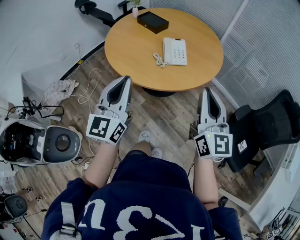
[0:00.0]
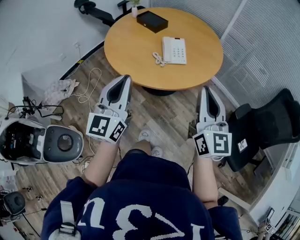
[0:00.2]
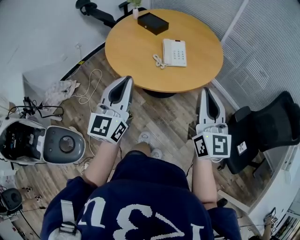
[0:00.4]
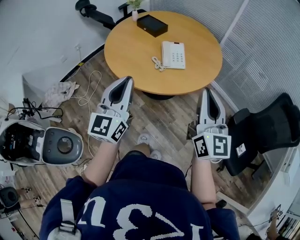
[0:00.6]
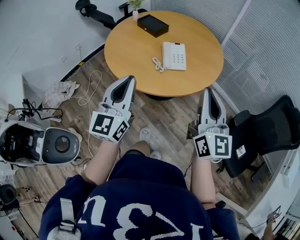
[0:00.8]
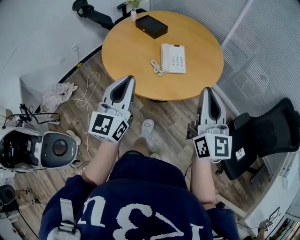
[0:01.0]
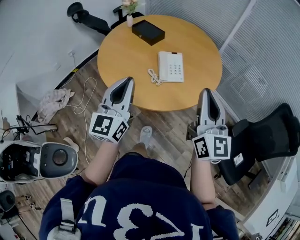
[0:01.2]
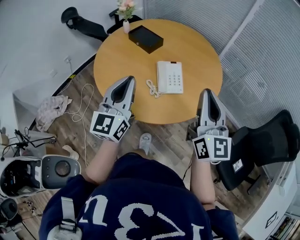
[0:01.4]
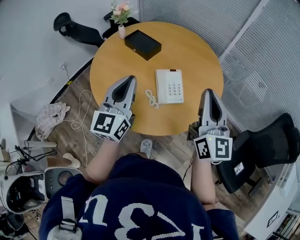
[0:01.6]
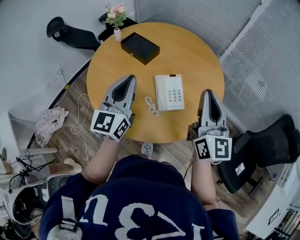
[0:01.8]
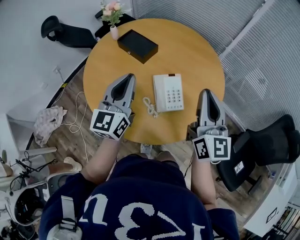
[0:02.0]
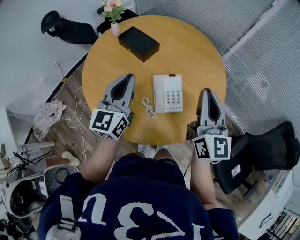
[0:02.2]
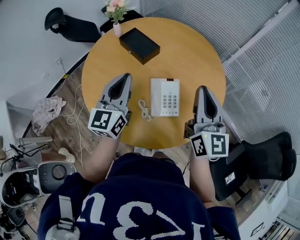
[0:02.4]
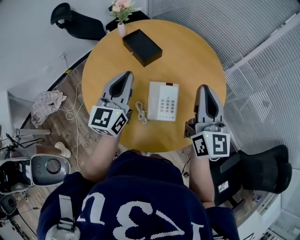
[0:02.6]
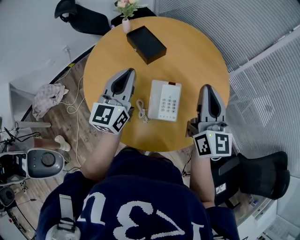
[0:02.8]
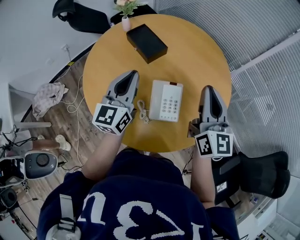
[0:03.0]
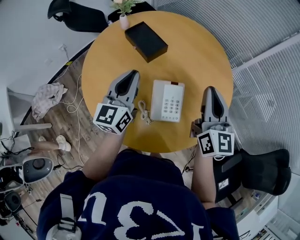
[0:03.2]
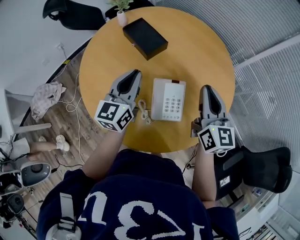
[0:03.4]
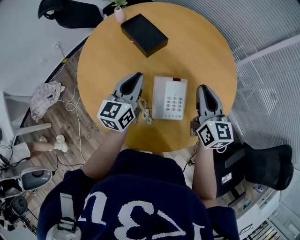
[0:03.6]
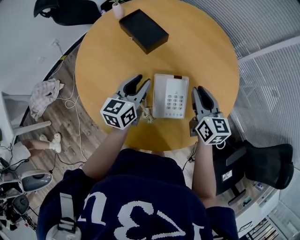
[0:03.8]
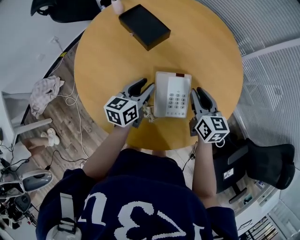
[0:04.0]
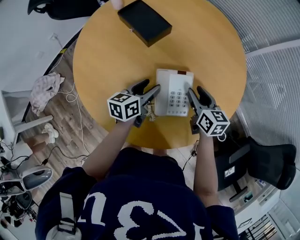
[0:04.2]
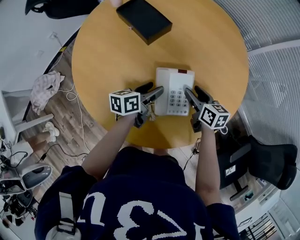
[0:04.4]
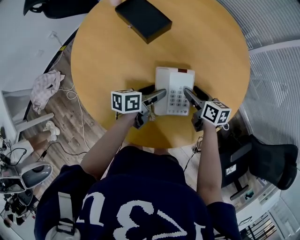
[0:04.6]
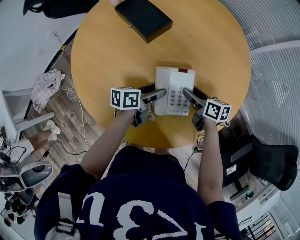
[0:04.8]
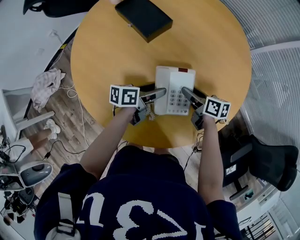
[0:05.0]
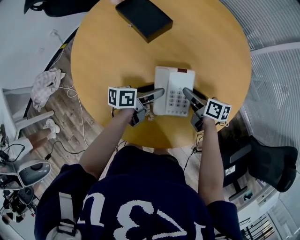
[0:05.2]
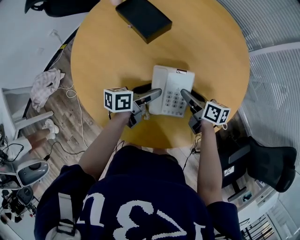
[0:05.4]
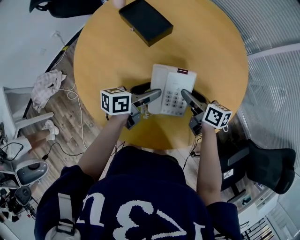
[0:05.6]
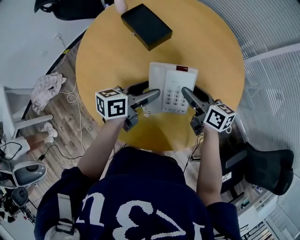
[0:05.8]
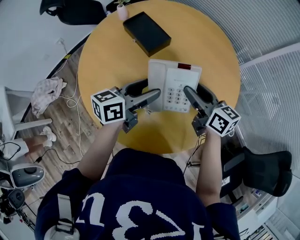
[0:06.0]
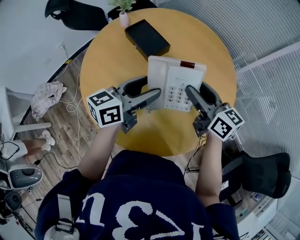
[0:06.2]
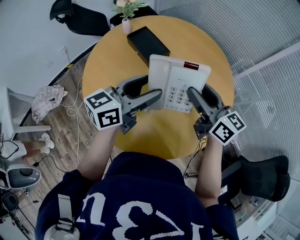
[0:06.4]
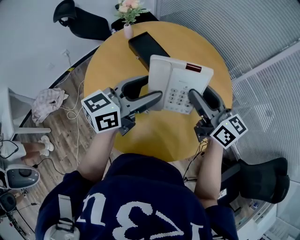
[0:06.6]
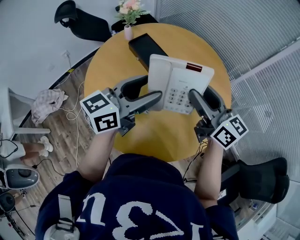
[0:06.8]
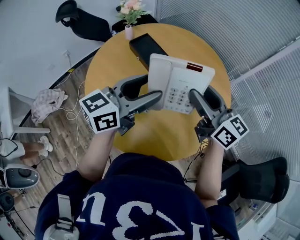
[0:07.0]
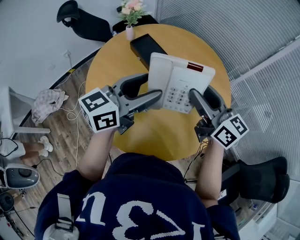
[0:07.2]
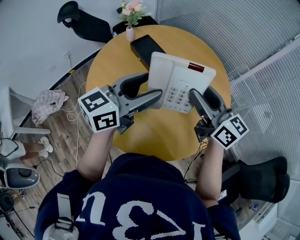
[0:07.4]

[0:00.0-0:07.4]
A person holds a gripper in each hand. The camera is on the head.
0:00.0 to 0:01.4: The two grippers go about 20 cm forward.
0:01.4 to 0:03.0: Both grippers move forward, about 25 cm.
0:03.0 to 0:04.4: Both grippers move downward, approximately 30 cm. The left gripper rotates roughly 60 degrees, and opens up. The right gripper tilts its fingers some 40 degrees downward, and opens up.
0:04.4 to 0:06.0: The grippers both shift upward by roughly 15 cm. The left gripper changes its angle by approximately 20 degrees. The right gripper changes its angle by approximately 20 degrees.
0:06.0 to 0:07.4: The grippers both shift upward by roughly 15 cm. The right gripper rotates roughly 20 degrees. The left gripper rotates approximately 20 degrees.

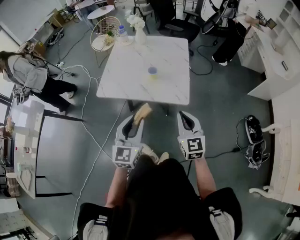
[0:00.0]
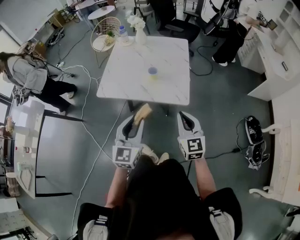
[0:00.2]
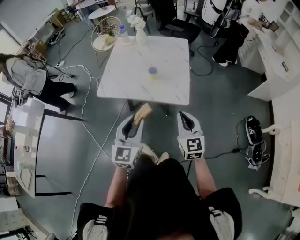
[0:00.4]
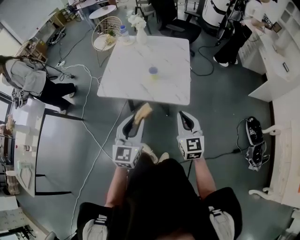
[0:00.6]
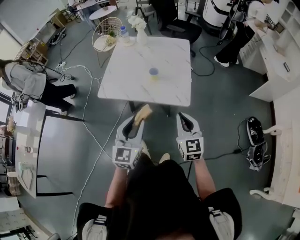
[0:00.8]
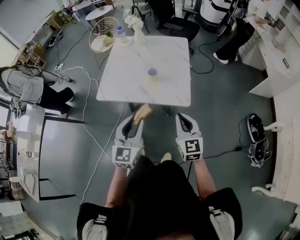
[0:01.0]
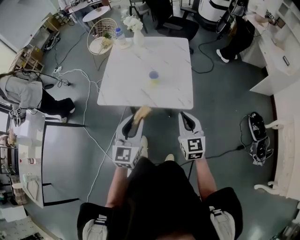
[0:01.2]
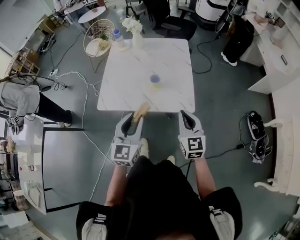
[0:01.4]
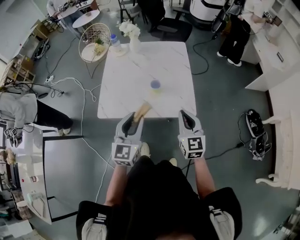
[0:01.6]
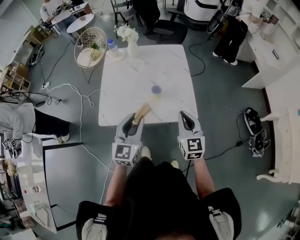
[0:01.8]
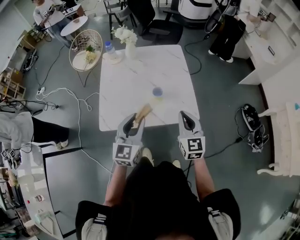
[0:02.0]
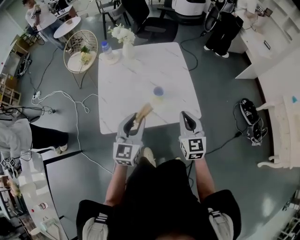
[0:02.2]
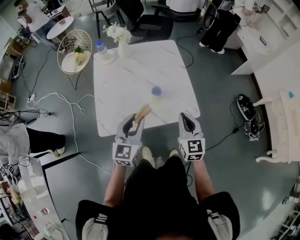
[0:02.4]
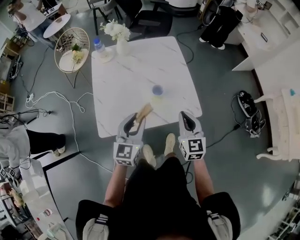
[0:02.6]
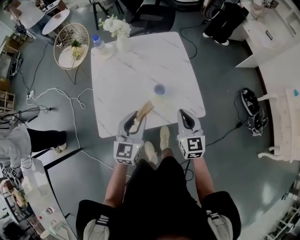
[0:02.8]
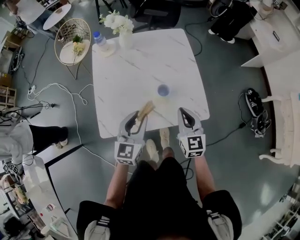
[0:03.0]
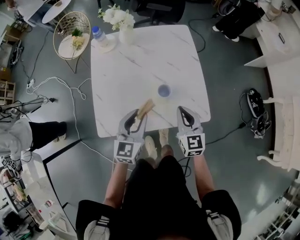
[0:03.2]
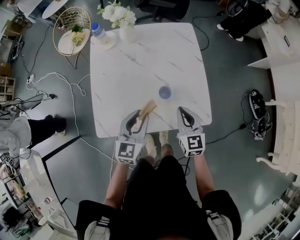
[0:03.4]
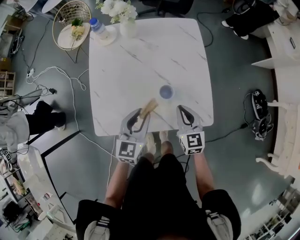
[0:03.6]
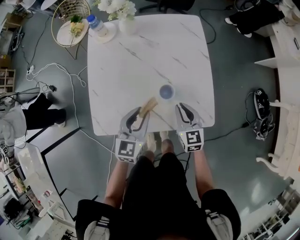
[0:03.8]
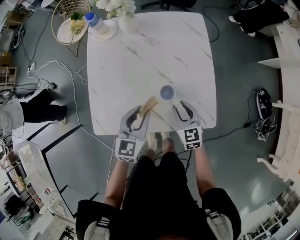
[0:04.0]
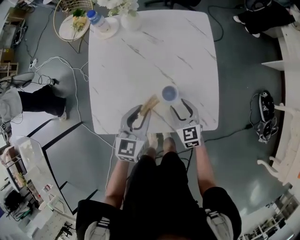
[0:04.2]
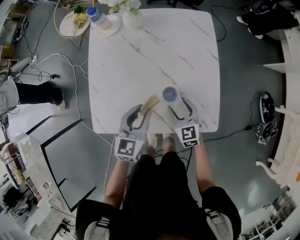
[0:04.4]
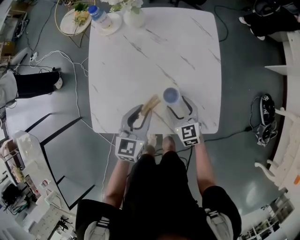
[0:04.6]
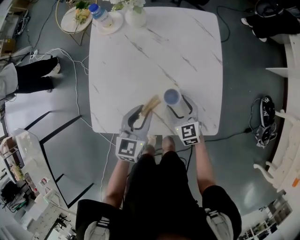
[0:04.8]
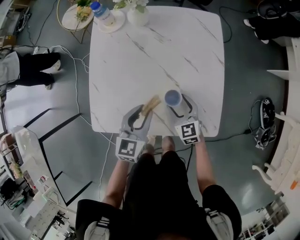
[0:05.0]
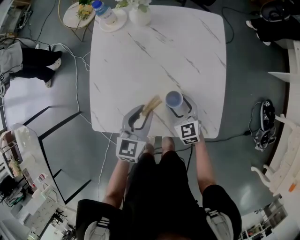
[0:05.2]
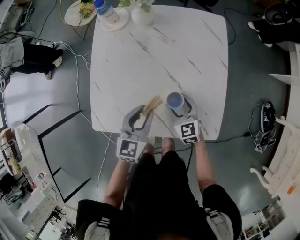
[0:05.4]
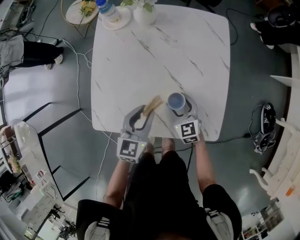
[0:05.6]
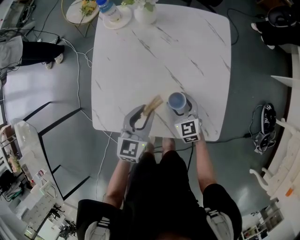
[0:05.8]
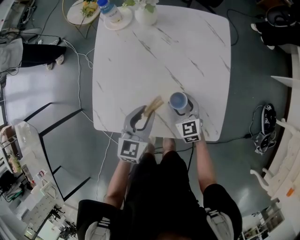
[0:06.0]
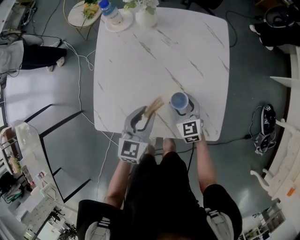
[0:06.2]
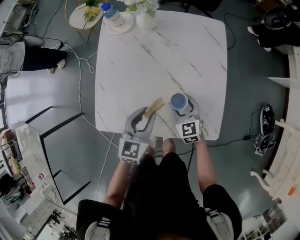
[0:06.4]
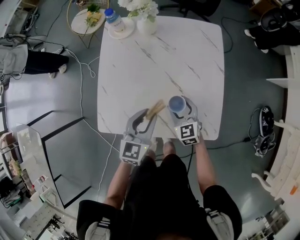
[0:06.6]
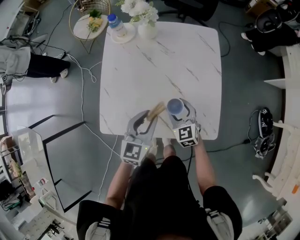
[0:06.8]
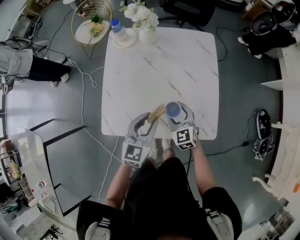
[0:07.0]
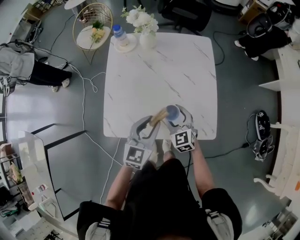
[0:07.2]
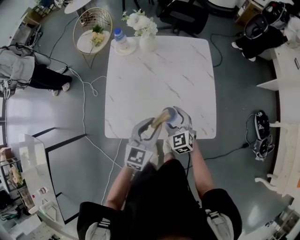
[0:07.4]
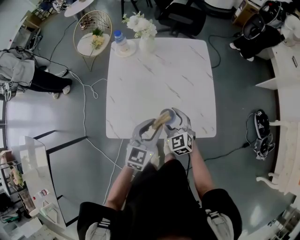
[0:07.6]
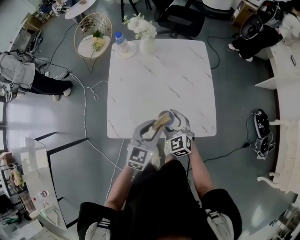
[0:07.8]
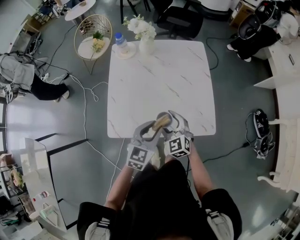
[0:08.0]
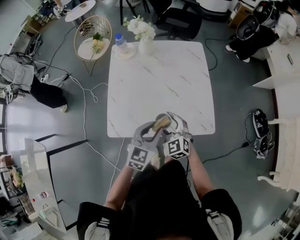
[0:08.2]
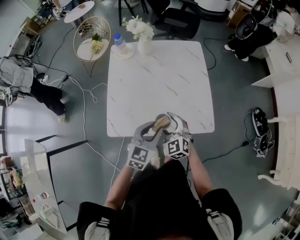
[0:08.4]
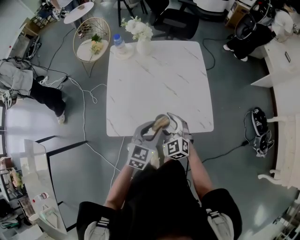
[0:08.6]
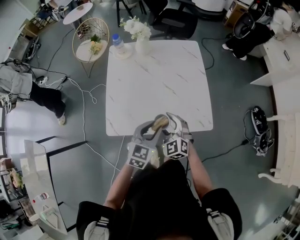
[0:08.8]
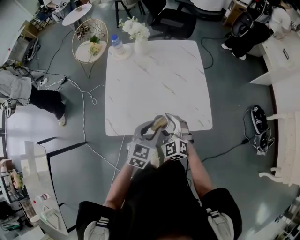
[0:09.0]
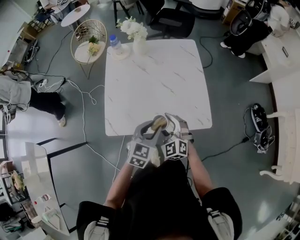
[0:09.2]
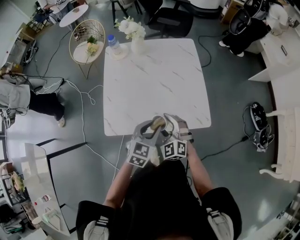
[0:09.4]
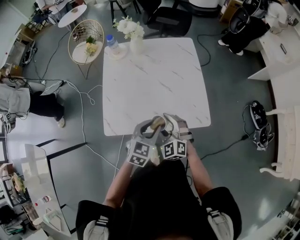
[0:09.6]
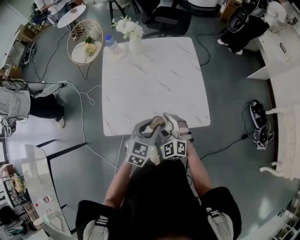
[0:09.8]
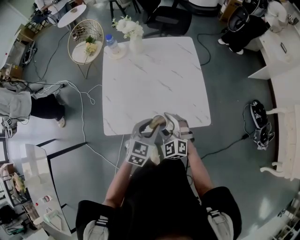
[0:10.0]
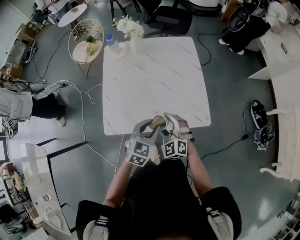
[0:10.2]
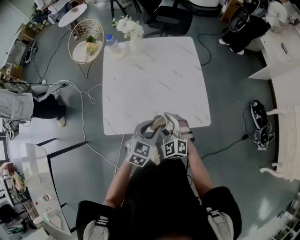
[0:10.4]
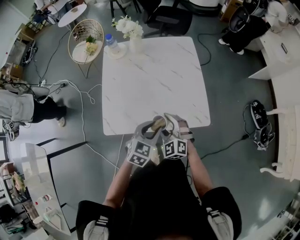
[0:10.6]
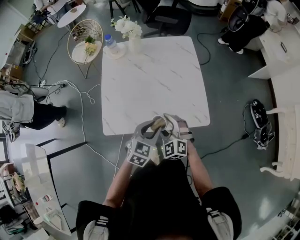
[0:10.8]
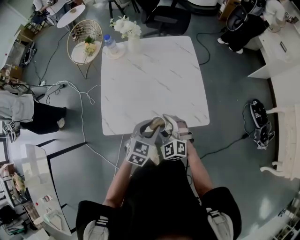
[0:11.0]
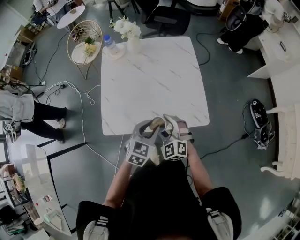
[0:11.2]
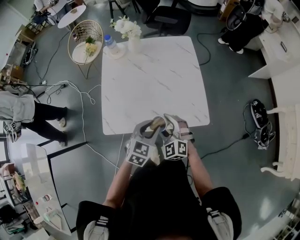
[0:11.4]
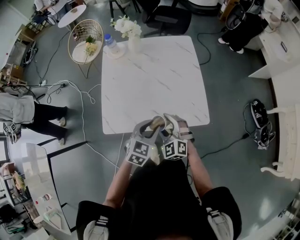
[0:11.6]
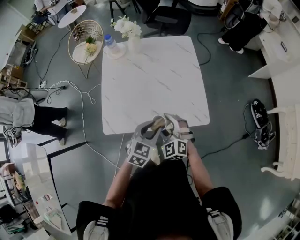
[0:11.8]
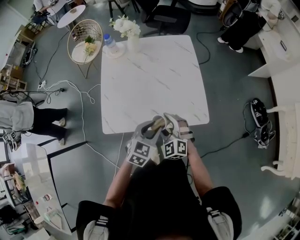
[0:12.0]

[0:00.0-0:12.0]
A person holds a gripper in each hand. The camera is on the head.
0:00.0 to 0:01.6: Both grippers move forward and to the left, approximately 15 cm.
0:01.6 to 0:03.0: The right gripper travels forward, to the left and downward by about 15 cm; the left gripper heads forward, downward and to the left, covering approximately 20 cm.
0:03.0 to 0:04.4: The left gripper moves downward and forward, approximately 10 cm; the right gripper is displaced downward and forward by some 20 cm, changes its angle by approximately 20 degrees, and opens up.
0:04.4 to 0:06.0: The right gripper changes place by about 5 cm.
0:06.0 to 0:07.6: The left gripper moves upward and backward, approximately 15 cm; the right gripper moves upward, backward and to the left, about 15 cm.
0:07.6 to 0:09.0: The grippers both shift backward by about 5 cm.
0:09.0 to 0:12.0: The grippers stay close to where they were, moving slightly.

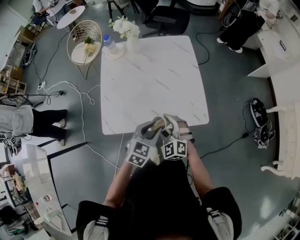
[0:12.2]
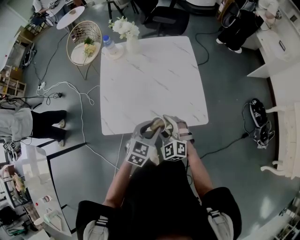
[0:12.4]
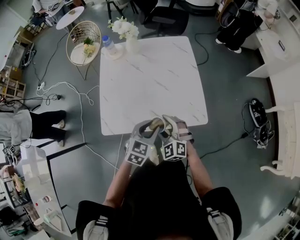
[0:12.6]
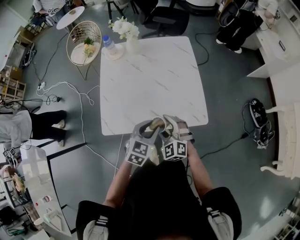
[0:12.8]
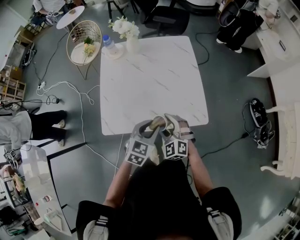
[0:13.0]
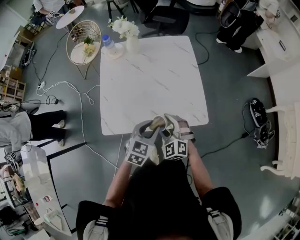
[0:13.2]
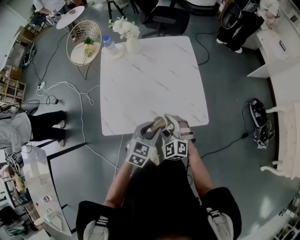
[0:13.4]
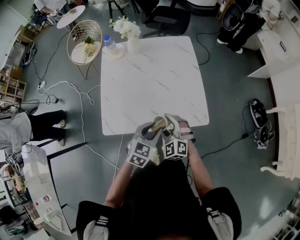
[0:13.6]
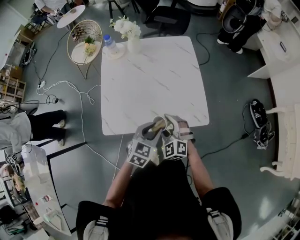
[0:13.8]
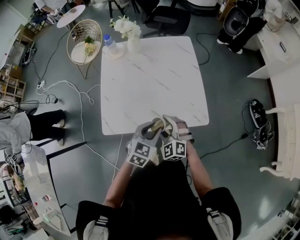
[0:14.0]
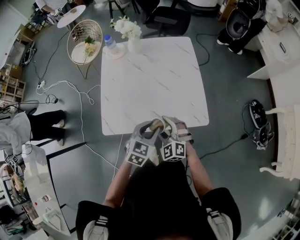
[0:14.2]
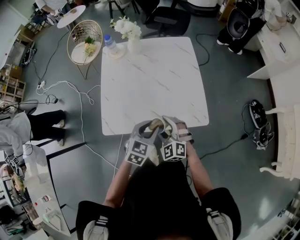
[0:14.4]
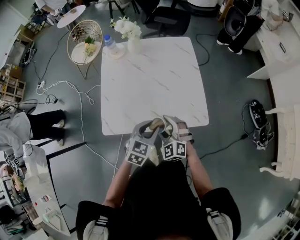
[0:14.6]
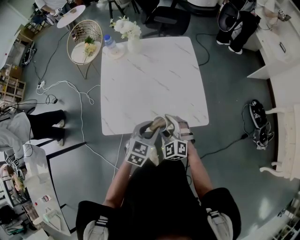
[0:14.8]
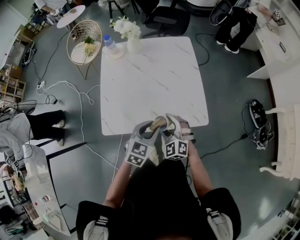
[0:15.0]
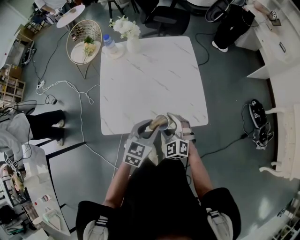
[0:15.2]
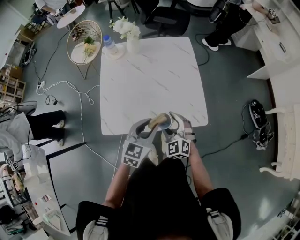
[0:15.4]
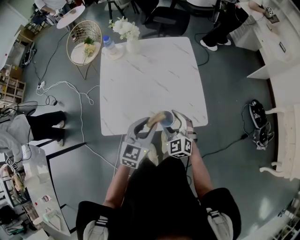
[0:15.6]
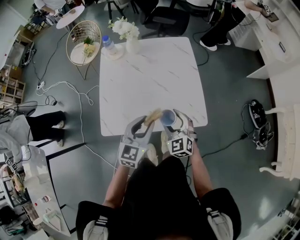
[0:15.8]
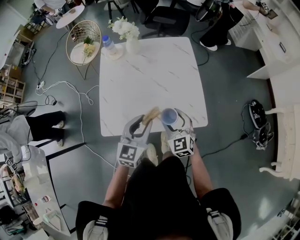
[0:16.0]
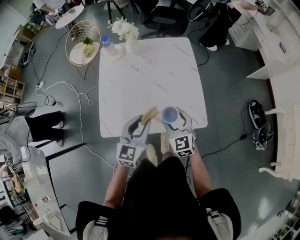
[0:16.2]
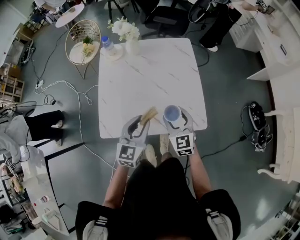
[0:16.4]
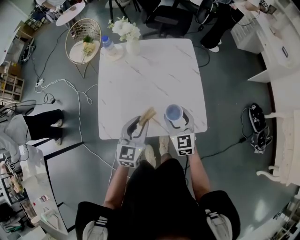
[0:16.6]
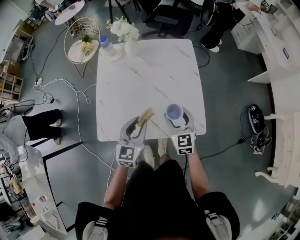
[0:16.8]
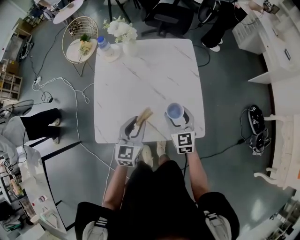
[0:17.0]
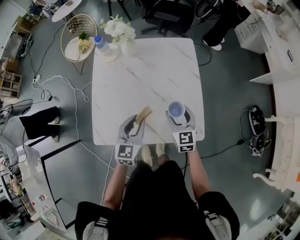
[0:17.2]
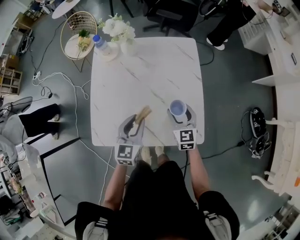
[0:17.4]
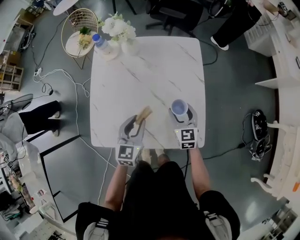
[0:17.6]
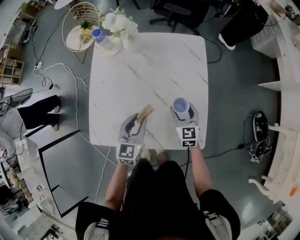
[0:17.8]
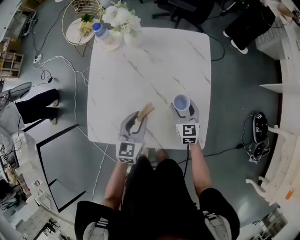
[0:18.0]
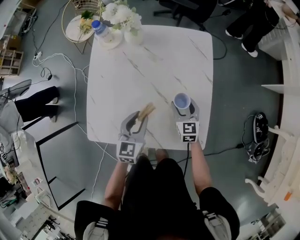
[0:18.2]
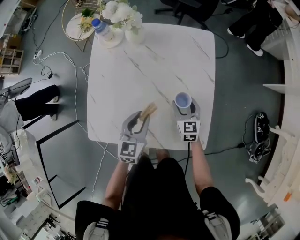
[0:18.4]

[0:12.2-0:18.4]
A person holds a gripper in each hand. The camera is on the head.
0:12.2 to 0:13.8: Both grippers stay put.
0:13.8 to 0:15.4: There are only small adjustments of the grippers.
0:15.4 to 0:16.8: The two grippers go some 10 cm forward. The right gripper swivels some 30 degrees.
0:16.8 to 0:18.4: The right gripper travels downward and forward by roughly 20 cm; the left gripper goes some 15 cm forward and downward.
